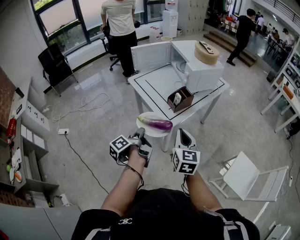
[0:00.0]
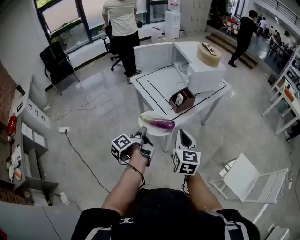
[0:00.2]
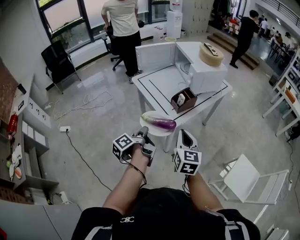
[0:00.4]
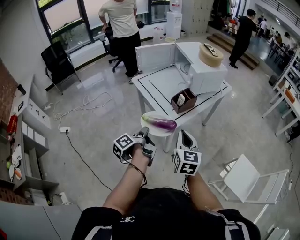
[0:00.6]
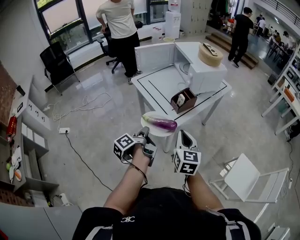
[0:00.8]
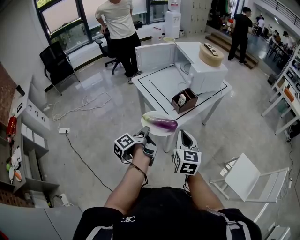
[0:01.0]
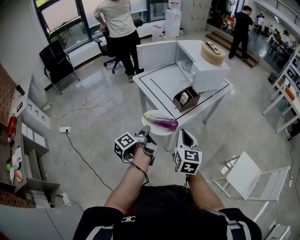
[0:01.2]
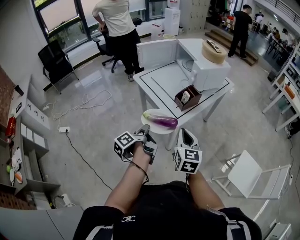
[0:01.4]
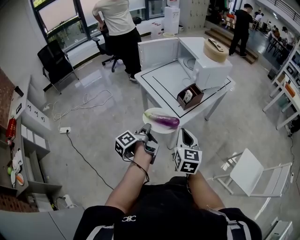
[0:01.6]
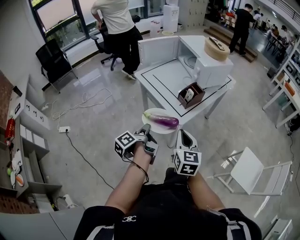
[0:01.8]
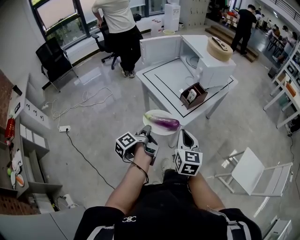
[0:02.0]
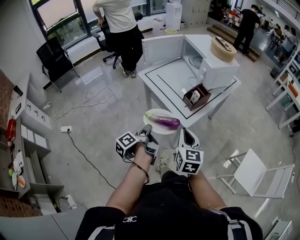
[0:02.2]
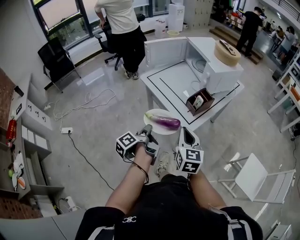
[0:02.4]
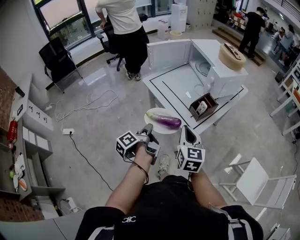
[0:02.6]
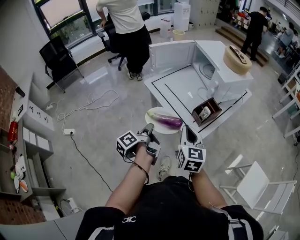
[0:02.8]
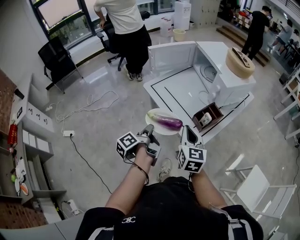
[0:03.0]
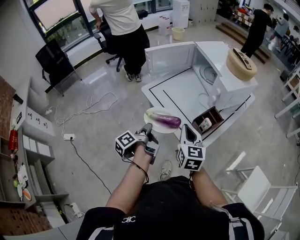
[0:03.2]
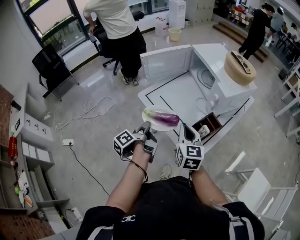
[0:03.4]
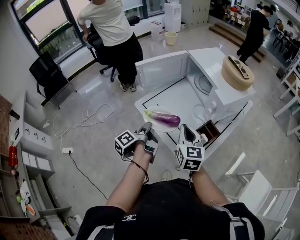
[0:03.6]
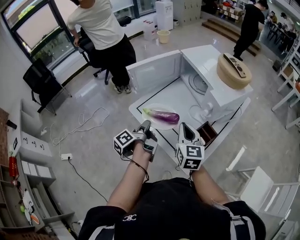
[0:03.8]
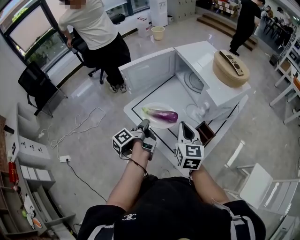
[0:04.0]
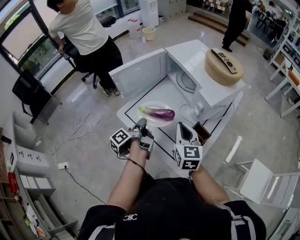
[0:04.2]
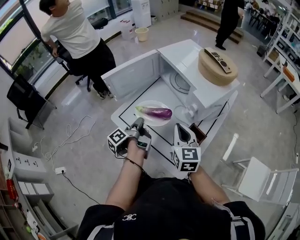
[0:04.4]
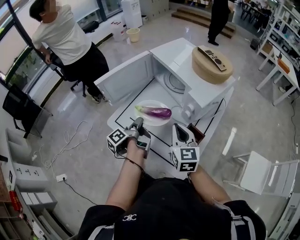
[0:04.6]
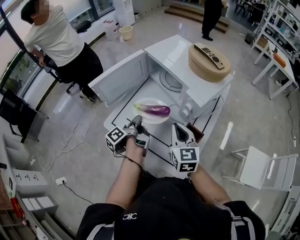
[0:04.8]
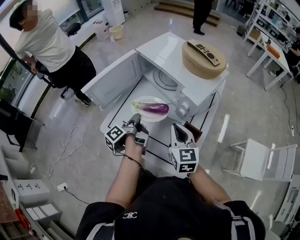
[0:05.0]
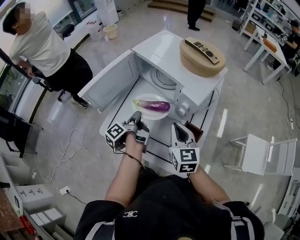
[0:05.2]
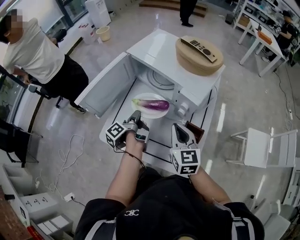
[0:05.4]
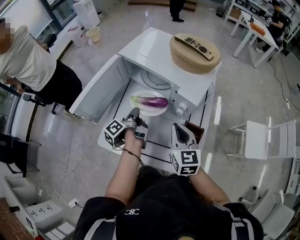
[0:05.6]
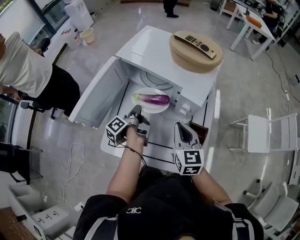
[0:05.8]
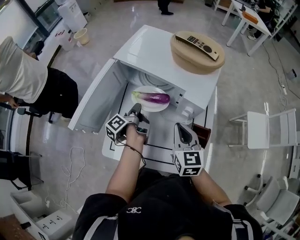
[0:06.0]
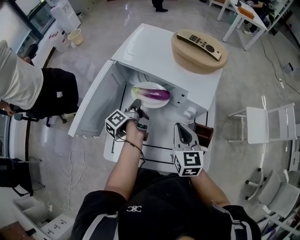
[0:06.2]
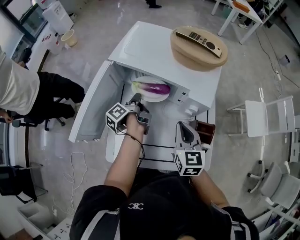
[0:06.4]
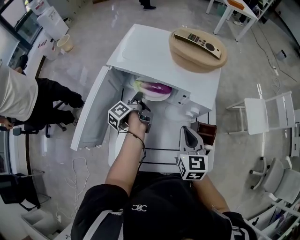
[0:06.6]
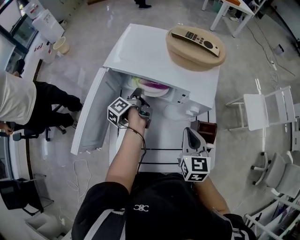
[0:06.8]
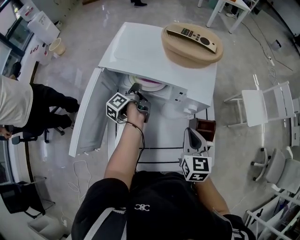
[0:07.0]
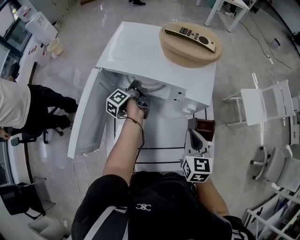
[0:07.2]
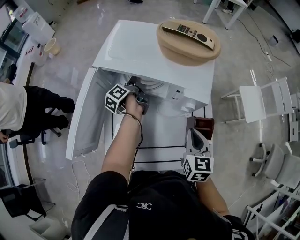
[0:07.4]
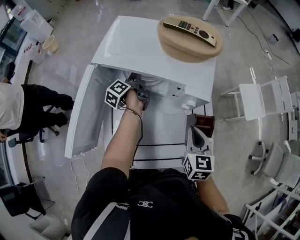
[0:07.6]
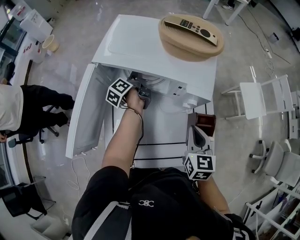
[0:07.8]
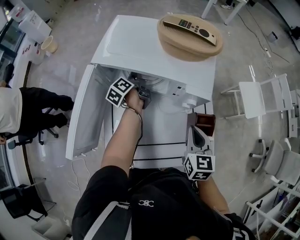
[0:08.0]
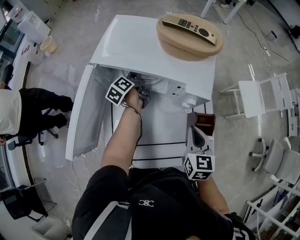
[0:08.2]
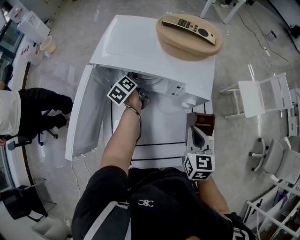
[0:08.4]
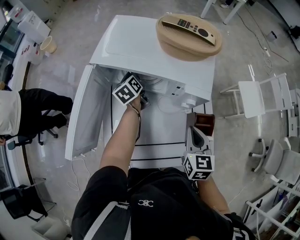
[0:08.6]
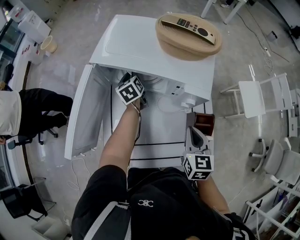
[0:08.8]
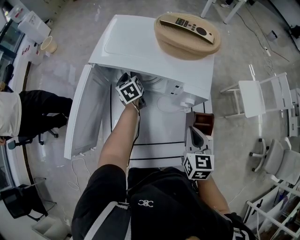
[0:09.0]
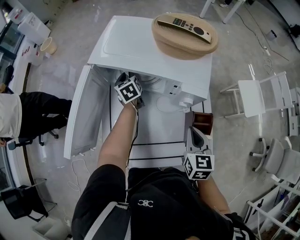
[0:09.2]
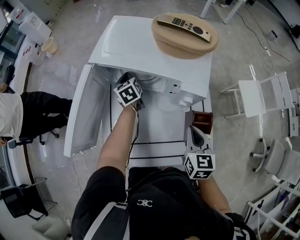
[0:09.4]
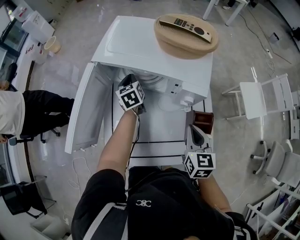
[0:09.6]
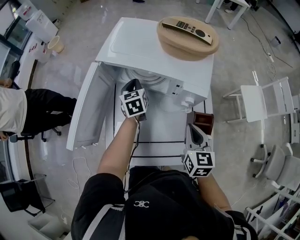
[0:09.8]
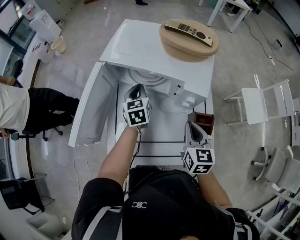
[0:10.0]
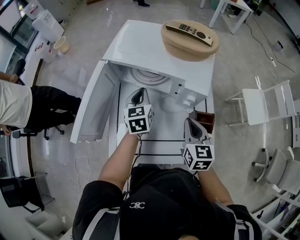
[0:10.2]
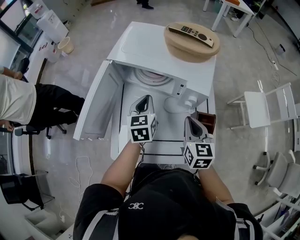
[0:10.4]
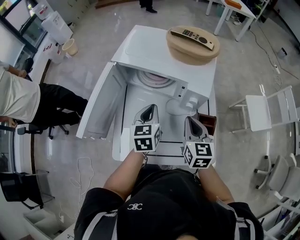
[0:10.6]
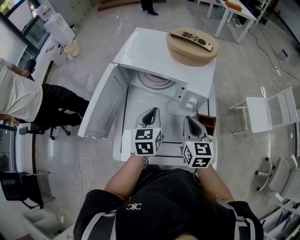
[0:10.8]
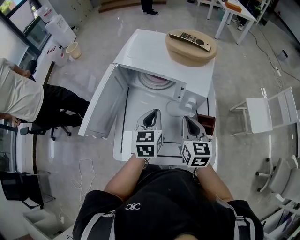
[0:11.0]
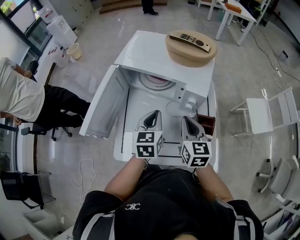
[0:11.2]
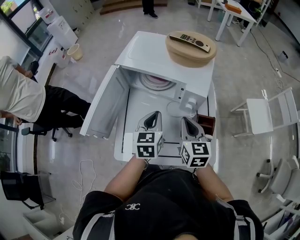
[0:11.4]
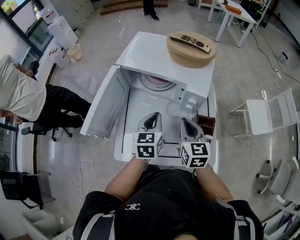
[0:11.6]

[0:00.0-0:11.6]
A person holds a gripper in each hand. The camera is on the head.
0:01.4 to 0:02.8: The right gripper moves roughly 15 cm.
0:02.8 to 0:04.4: The right gripper shifts by some 25 cm.
0:04.4 to 0:05.8: The right gripper moves some 5 cm, and turns by roughly 20 degrees.
0:05.8 to 0:07.2: The right gripper changes its angle by approximately 20 degrees.

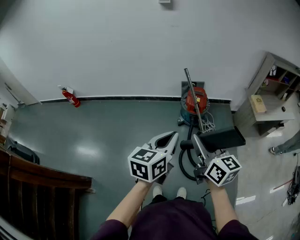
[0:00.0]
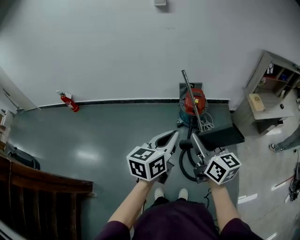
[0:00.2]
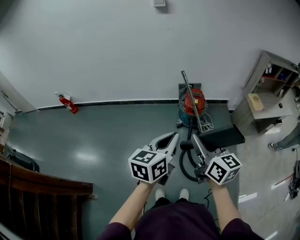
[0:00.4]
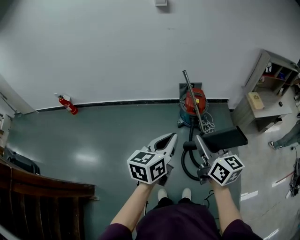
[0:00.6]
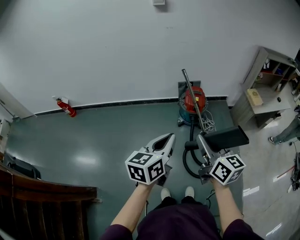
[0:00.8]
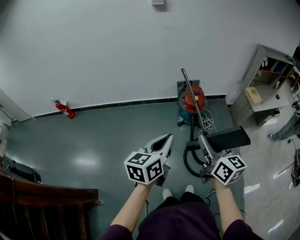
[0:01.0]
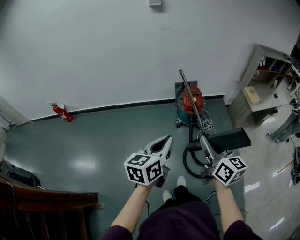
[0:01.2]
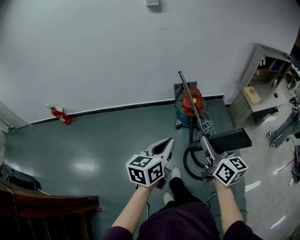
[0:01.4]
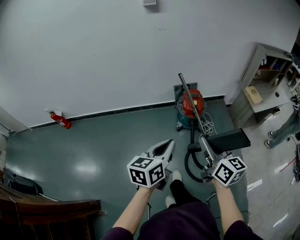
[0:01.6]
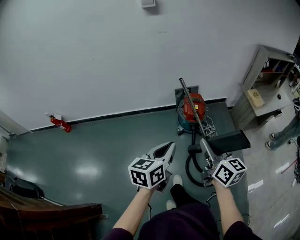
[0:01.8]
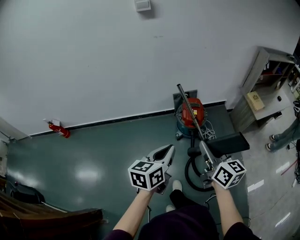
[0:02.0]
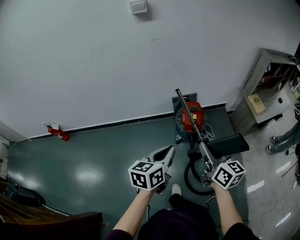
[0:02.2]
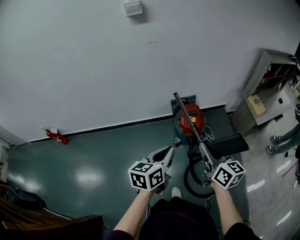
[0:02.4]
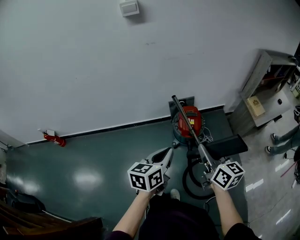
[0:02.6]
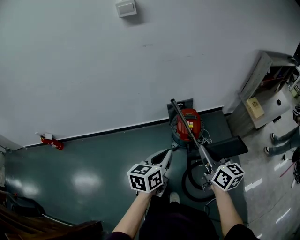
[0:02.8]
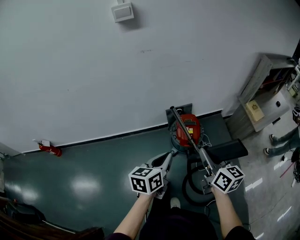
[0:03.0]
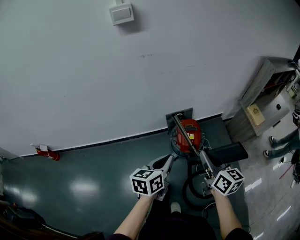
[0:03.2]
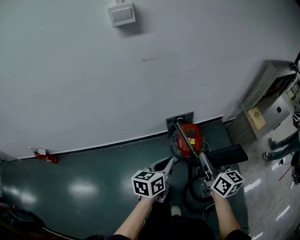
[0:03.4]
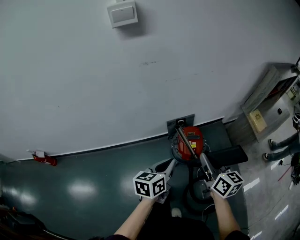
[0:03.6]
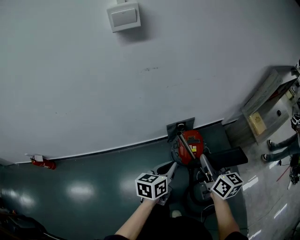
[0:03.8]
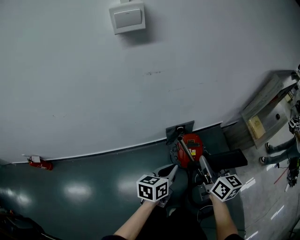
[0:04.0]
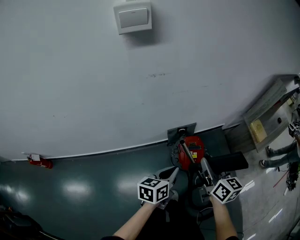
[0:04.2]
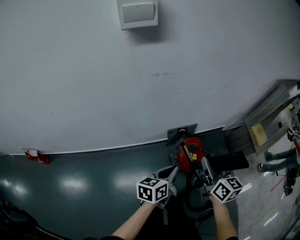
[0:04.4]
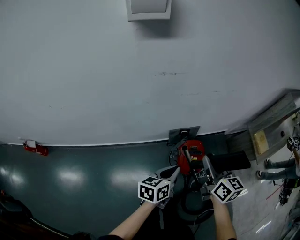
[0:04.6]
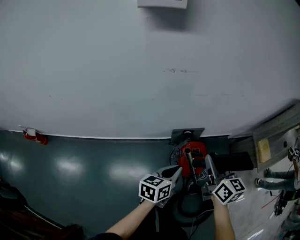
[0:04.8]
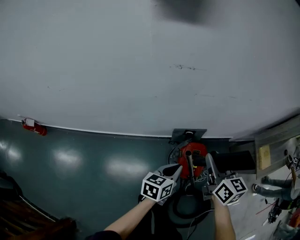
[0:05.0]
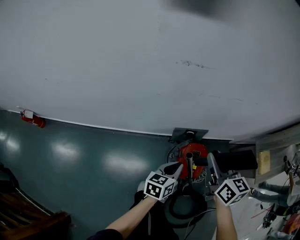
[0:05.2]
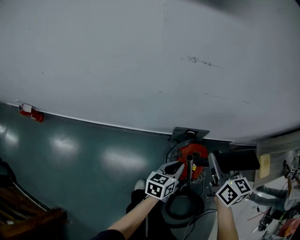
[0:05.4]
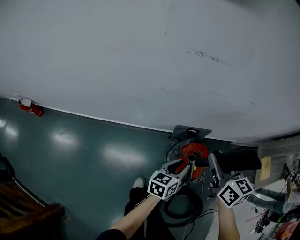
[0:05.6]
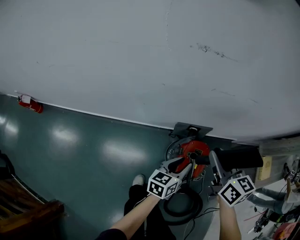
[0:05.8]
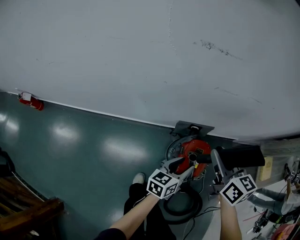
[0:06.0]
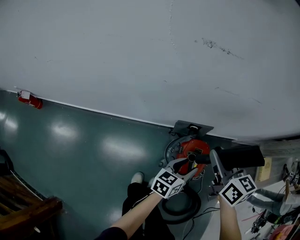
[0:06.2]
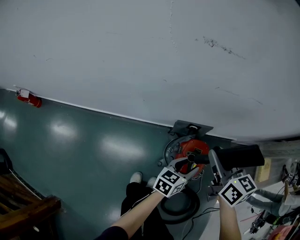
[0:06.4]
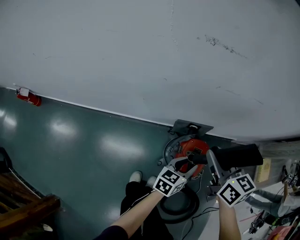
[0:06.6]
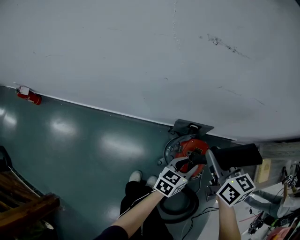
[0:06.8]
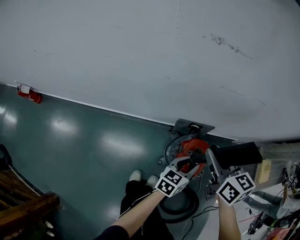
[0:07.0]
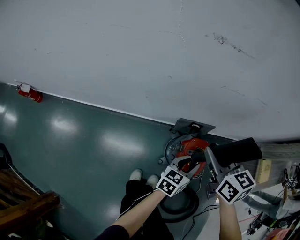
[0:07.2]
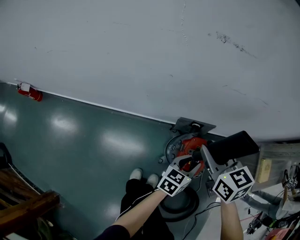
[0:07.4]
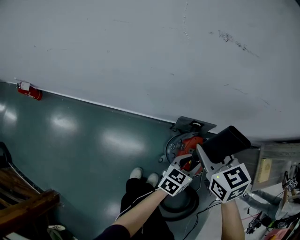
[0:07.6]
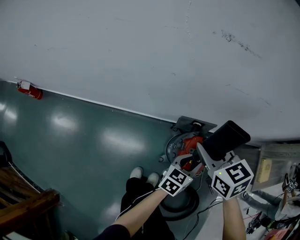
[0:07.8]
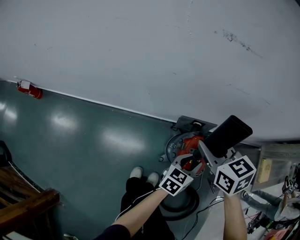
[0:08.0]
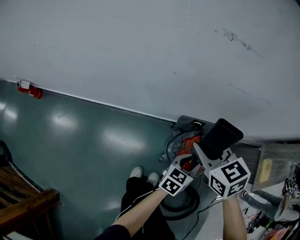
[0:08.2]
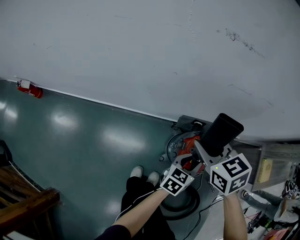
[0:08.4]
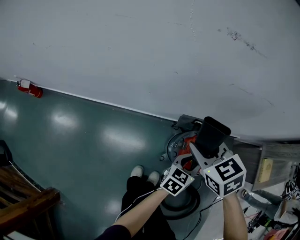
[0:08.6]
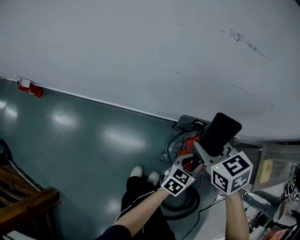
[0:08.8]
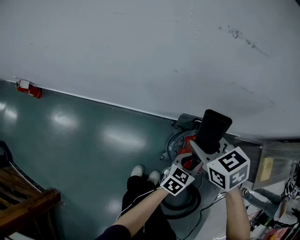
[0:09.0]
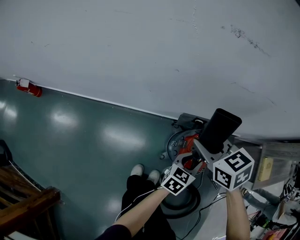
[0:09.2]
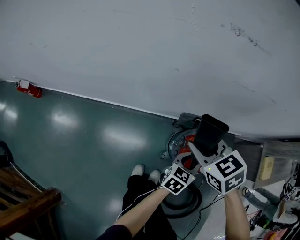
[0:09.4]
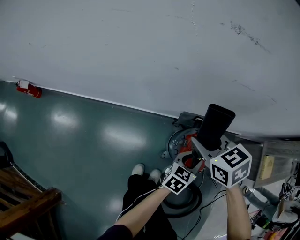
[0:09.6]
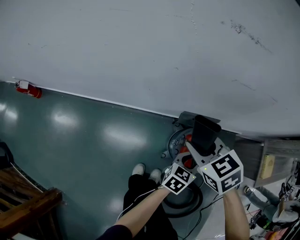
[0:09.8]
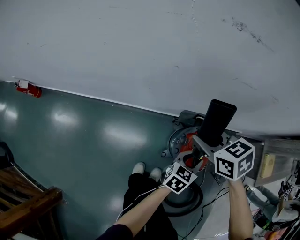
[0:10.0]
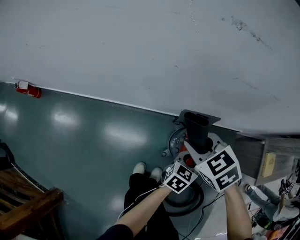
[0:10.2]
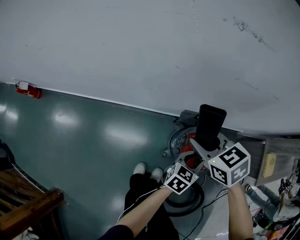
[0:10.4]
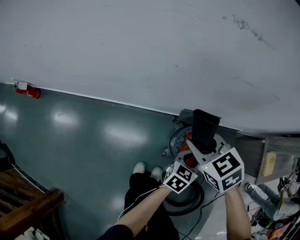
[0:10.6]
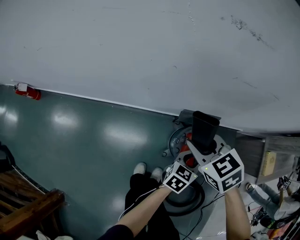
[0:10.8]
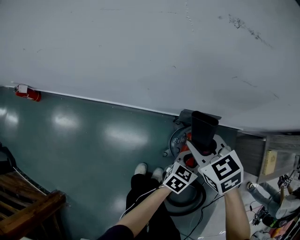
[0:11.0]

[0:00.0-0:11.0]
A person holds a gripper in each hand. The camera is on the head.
0:00.0 to 0:01.6: The right gripper shifts some 5 cm forward. Meanwhile the left gripper goes roughly 10 cm to the left and forward.
0:01.6 to 0:03.2: The grippers both shift forward by approximately 35 cm.
0:03.2 to 0:04.8: The right gripper moves forward, some 25 cm; the left gripper heads forward and downward, covering approximately 20 cm.
0:04.8 to 0:06.2: The left gripper shifts approximately 15 cm downward, to the right and forward, and opens, while the right gripper is displaced forward and downward by about 10 cm.
0:06.2 to 0:07.8: The right gripper moves to the left, approximately 5 cm, and rotates approximately 30 degrees.
0:07.8 to 0:09.4: The grippers make only small movements.
0:09.4 to 0:11.0: The grippers move only a little.

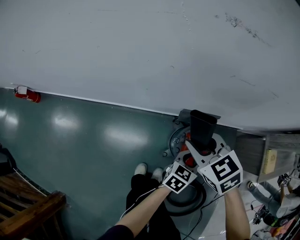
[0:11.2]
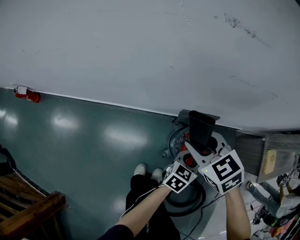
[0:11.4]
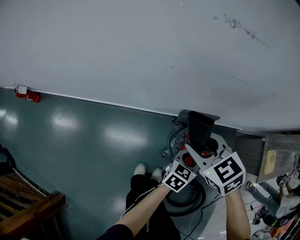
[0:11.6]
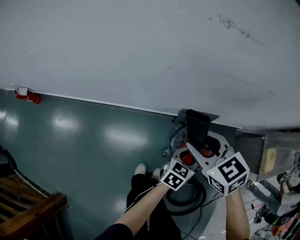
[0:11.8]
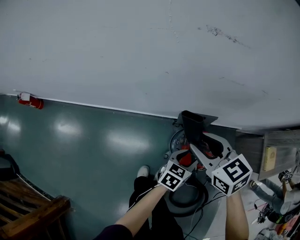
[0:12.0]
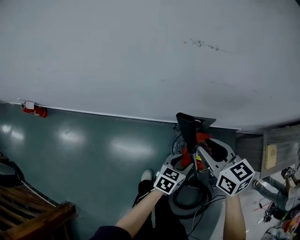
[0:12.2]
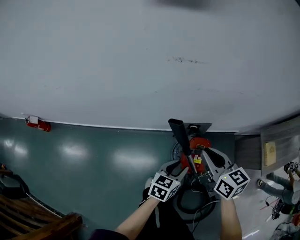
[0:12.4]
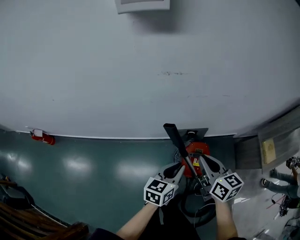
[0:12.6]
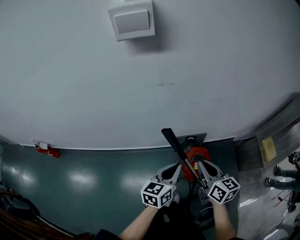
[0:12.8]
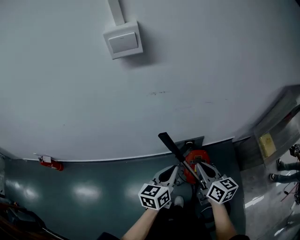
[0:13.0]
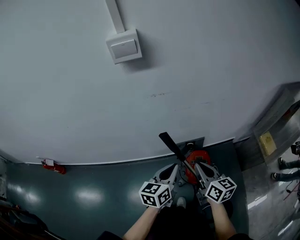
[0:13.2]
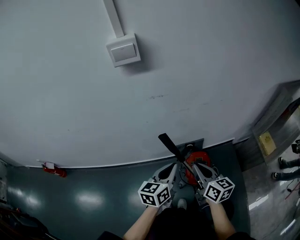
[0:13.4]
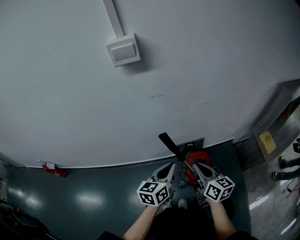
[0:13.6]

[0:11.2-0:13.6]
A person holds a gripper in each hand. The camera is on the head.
0:11.2 to 0:12.4: The left gripper moves upward and to the left, roughly 10 cm. The right gripper heads upward and to the right, covering some 15 cm, and changes its angle by some 40 degrees.
0:12.4 to 0:13.6: The left gripper goes approximately 20 cm upward, and closes up; the right gripper heads backward and upward, covering about 10 cm, and changes its angle by about 20 degrees.
